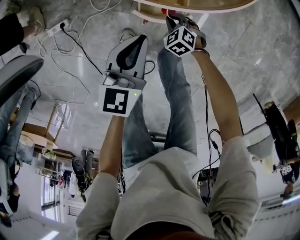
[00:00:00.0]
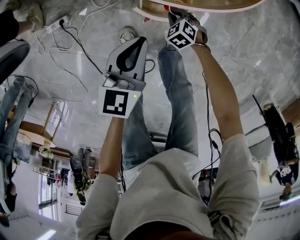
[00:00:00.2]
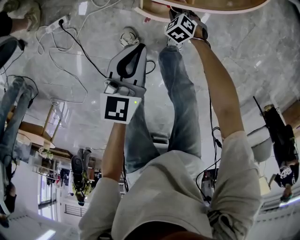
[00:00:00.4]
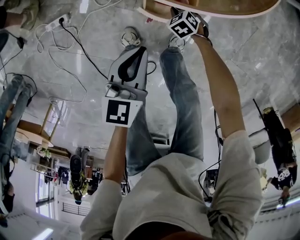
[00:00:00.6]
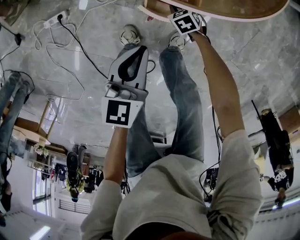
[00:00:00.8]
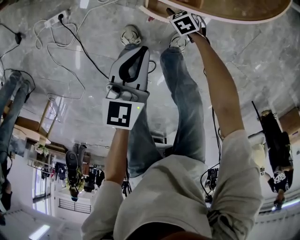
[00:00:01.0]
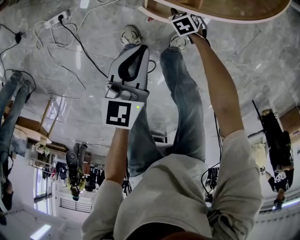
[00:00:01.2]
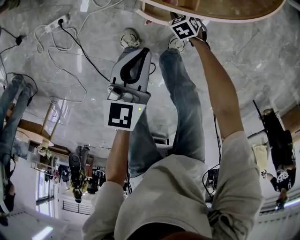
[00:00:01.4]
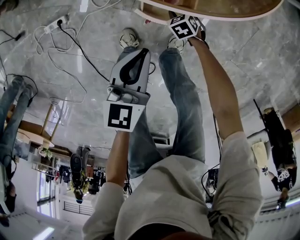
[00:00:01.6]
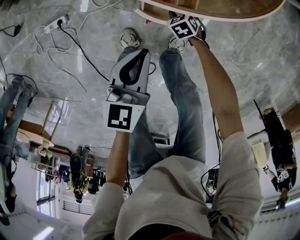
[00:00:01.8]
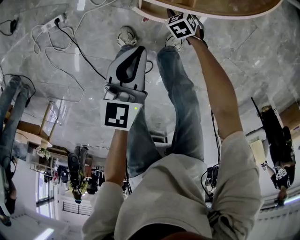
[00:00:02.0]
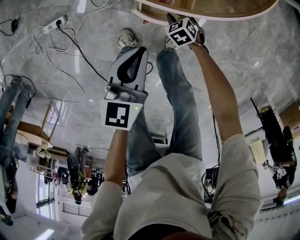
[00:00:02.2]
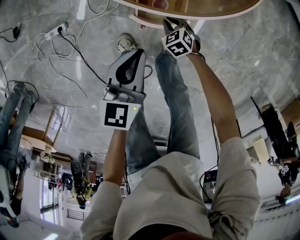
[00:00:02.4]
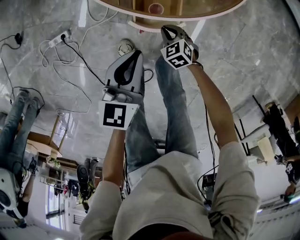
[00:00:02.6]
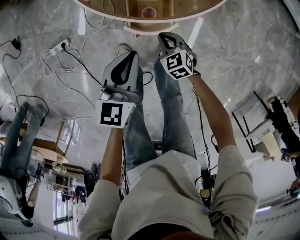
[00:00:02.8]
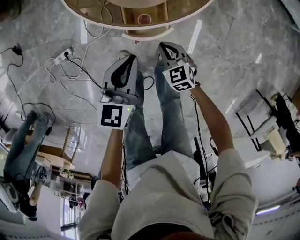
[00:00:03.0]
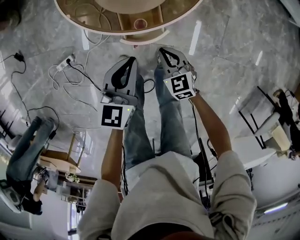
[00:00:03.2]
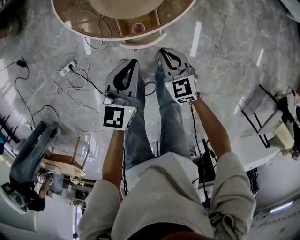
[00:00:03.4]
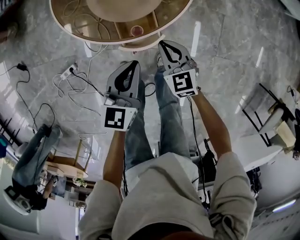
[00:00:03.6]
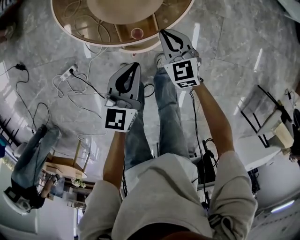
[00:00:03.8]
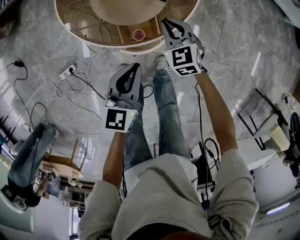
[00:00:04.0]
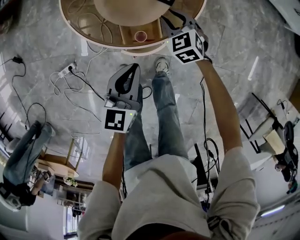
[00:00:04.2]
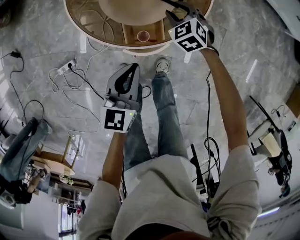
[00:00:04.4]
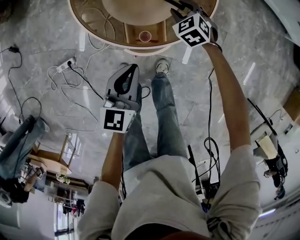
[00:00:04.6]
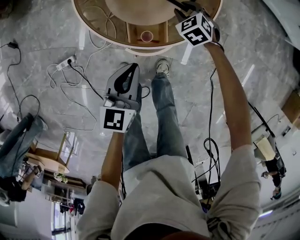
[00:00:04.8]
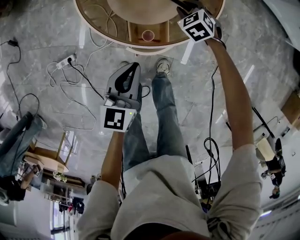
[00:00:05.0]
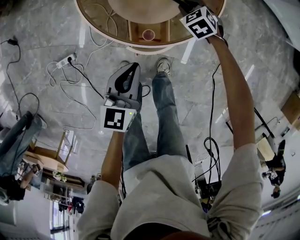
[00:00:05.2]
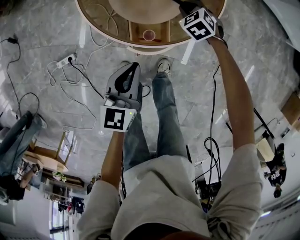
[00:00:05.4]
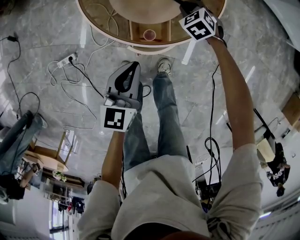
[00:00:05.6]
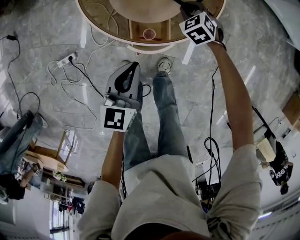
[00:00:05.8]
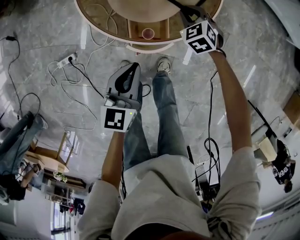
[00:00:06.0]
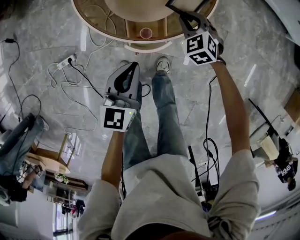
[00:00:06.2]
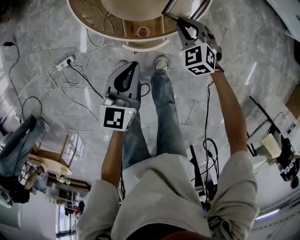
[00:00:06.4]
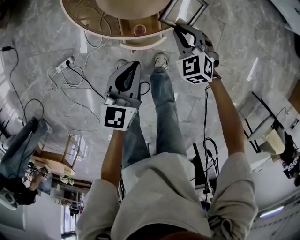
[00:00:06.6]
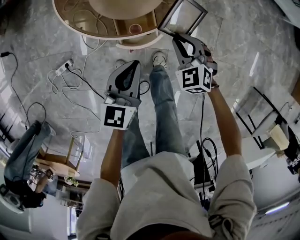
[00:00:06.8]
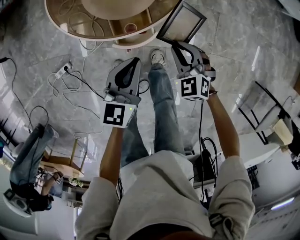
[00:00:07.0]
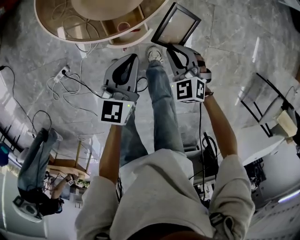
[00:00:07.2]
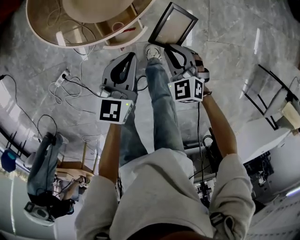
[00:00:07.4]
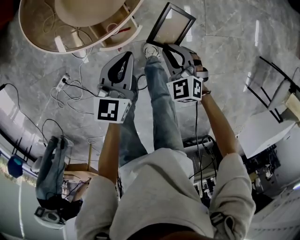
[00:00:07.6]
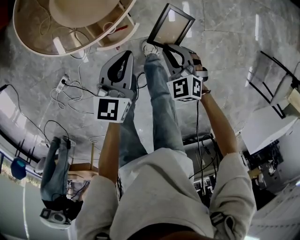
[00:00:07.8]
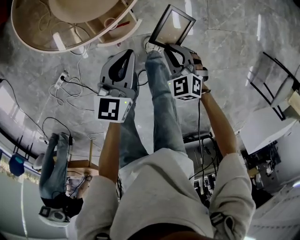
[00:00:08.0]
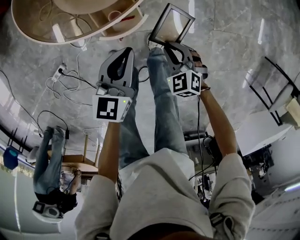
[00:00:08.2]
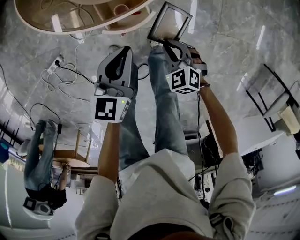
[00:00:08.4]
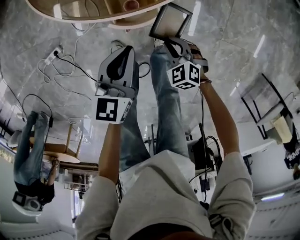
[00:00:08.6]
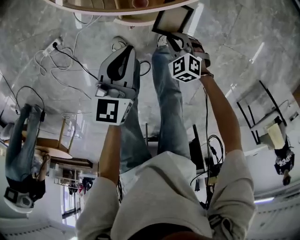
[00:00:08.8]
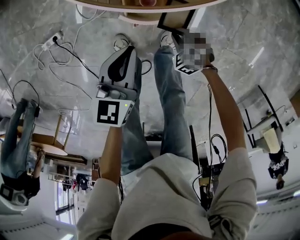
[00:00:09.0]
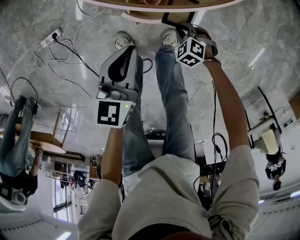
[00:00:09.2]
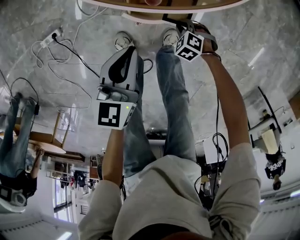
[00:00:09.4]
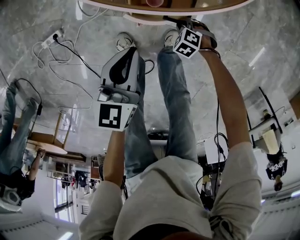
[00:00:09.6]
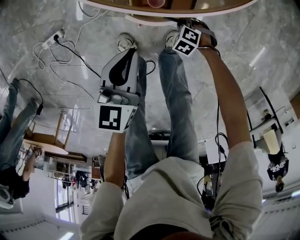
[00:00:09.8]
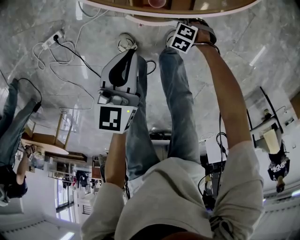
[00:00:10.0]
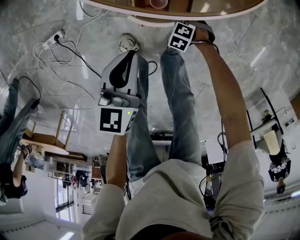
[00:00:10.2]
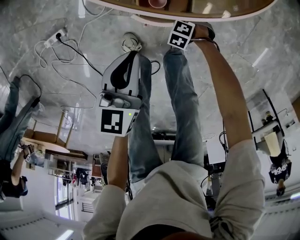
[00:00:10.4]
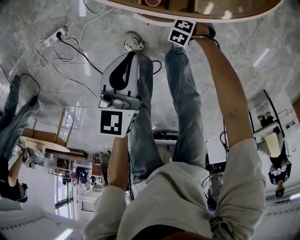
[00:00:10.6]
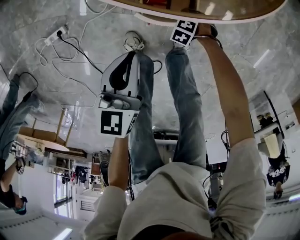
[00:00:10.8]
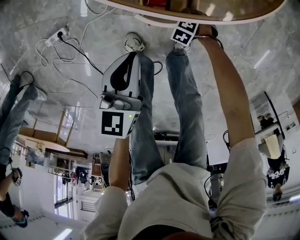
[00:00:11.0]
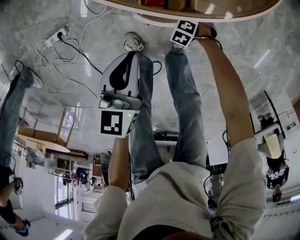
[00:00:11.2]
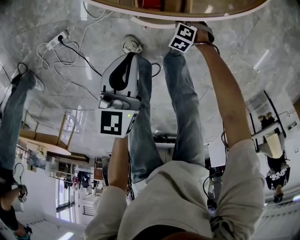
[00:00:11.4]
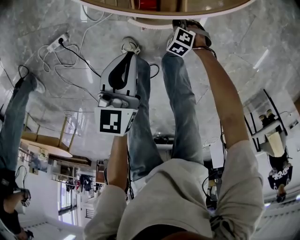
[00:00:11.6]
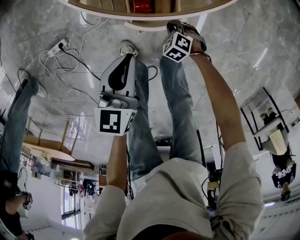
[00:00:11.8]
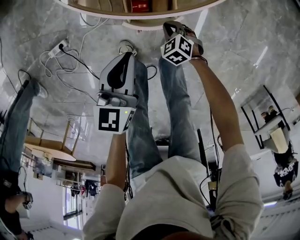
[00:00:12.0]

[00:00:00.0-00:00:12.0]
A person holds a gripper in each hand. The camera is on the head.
00:00:00.0 to 00:00:01.6: The left gripper changes place by about 5 cm. Meanwhile the right gripper travels downward by some 10 cm.
00:00:01.6 to 00:00:03.0: The left gripper is displaced upward by roughly 10 cm; the right gripper travels upward by about 25 cm, turns by approximately 30 degrees, and closes.
00:00:03.0 to 00:00:04.4: The right gripper goes roughly 25 cm forward, turns by some 20 degrees, and opens its fingers. The left gripper travels forward by roughly 5 cm.
00:00:04.4 to 00:00:06.0: The right gripper closes up.
00:00:06.0 to 00:00:07.6: The right gripper is displaced backward and to the right by roughly 30 cm. The left gripper travels to the right by about 15 cm, and changes its angle by about 20 degrees.
00:00:07.6 to 00:00:09.0: The left gripper moves roughly 20 cm, and changes its angle by some 20 degrees; the right gripper shifts approximately 25 cm downward, and rotates some 40 degrees.
00:00:09.0 to 00:00:10.4: The left gripper ends up about 5 cm from where it was; the right gripper heads downward, covering roughly 10 cm, and changes its angle by about 30 degrees.
00:00:10.4 to 00:00:12.0: The left gripper shifts roughly 5 cm upward; the right gripper heads upward, covering roughly 10 cm, and turns by about 40 degrees.

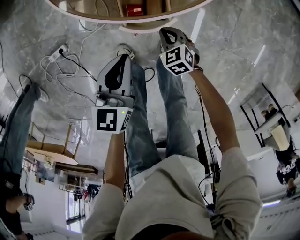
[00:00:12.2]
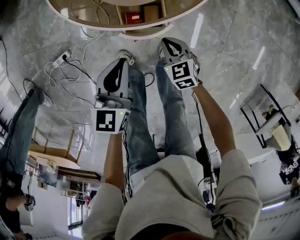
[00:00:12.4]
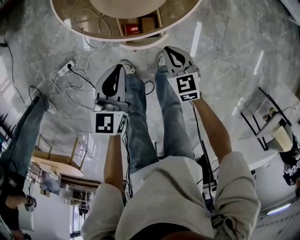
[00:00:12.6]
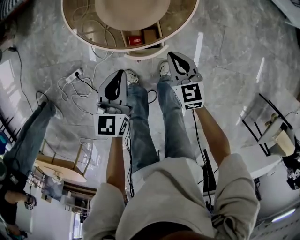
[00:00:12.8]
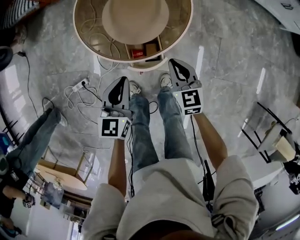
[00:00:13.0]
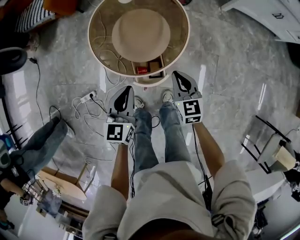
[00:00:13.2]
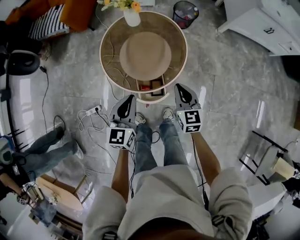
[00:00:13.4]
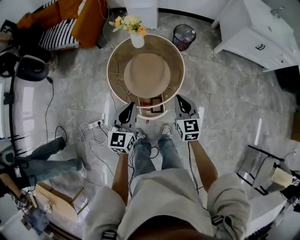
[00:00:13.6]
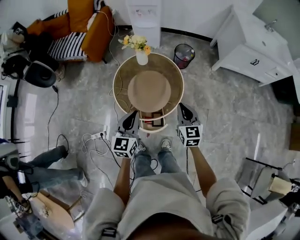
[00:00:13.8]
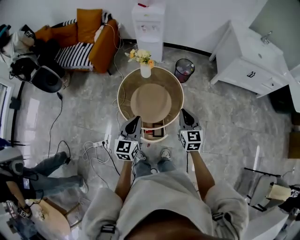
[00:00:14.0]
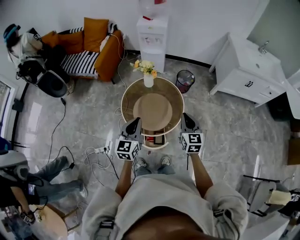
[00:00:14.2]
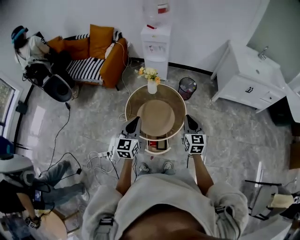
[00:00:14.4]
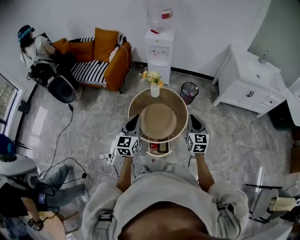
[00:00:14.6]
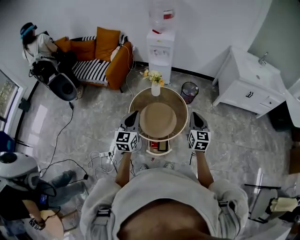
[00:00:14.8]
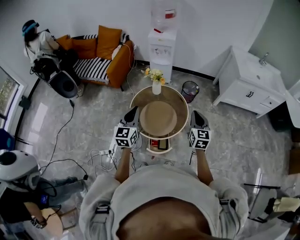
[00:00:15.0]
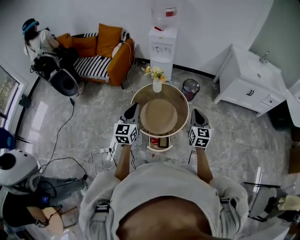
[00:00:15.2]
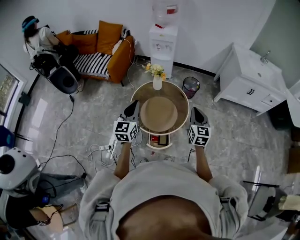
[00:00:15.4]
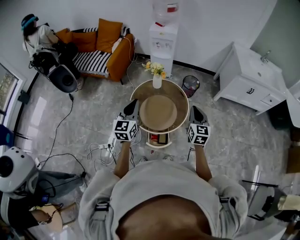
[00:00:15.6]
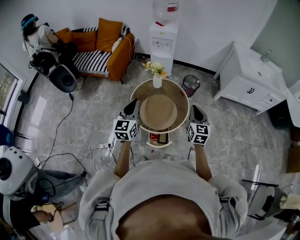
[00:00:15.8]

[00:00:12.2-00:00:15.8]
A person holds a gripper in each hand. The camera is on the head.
00:00:12.2 to 00:00:14.0: The grippers both shift upward by approximately 50 cm. The right gripper tilts its fingers approximately 40 degrees upward, while the left gripper turns by some 20 degrees.
00:00:14.0 to 00:00:15.8: The right gripper goes approximately 10 cm upward. Meanwhile the left gripper heads upward and to the left, covering approximately 15 cm.

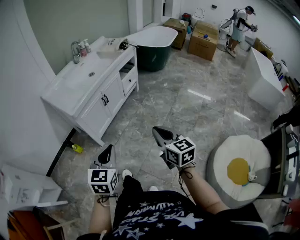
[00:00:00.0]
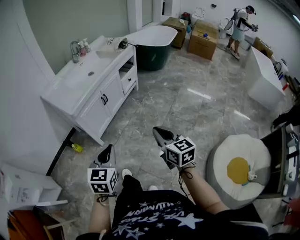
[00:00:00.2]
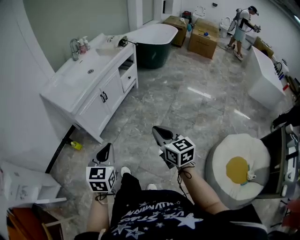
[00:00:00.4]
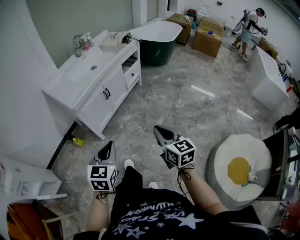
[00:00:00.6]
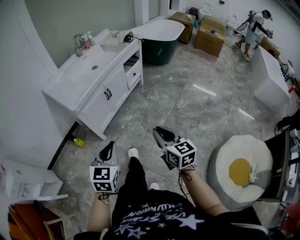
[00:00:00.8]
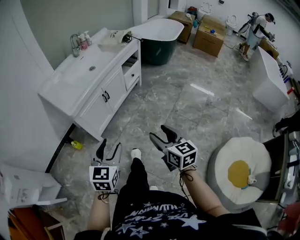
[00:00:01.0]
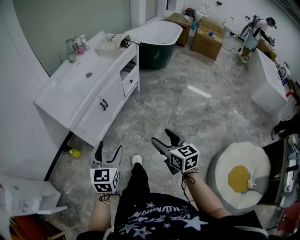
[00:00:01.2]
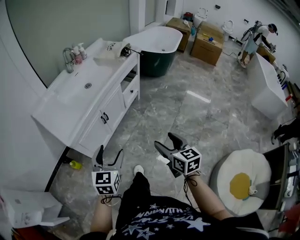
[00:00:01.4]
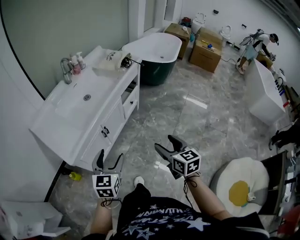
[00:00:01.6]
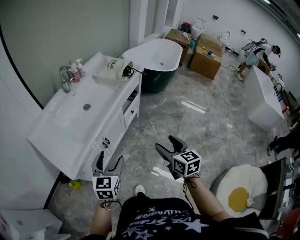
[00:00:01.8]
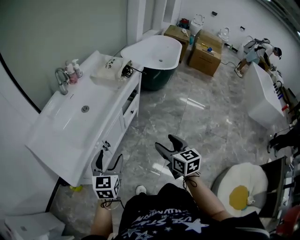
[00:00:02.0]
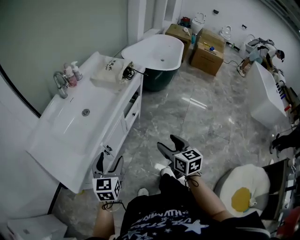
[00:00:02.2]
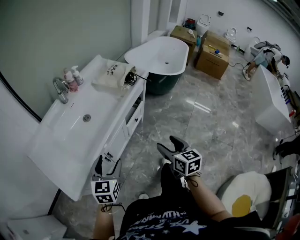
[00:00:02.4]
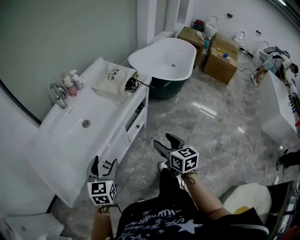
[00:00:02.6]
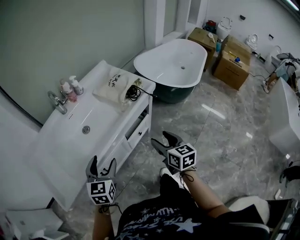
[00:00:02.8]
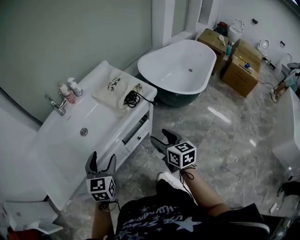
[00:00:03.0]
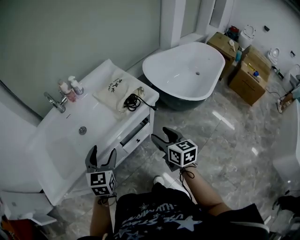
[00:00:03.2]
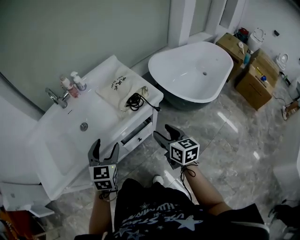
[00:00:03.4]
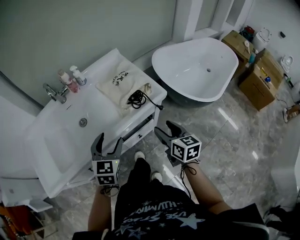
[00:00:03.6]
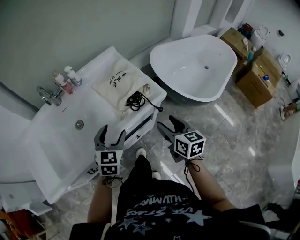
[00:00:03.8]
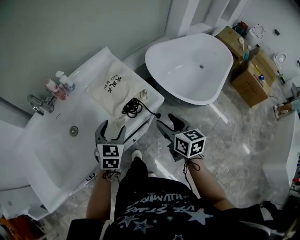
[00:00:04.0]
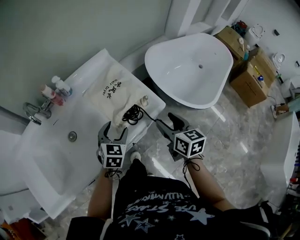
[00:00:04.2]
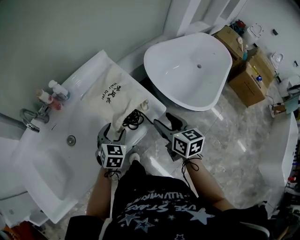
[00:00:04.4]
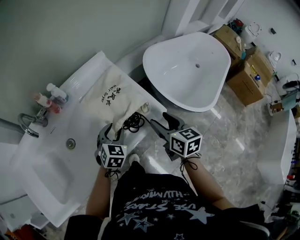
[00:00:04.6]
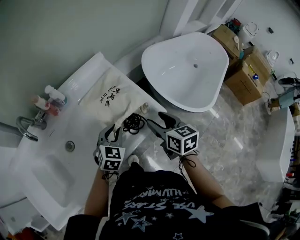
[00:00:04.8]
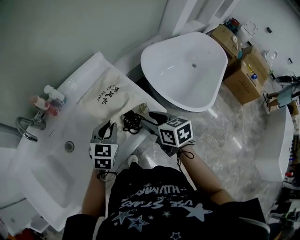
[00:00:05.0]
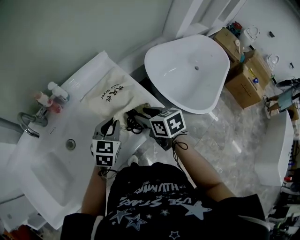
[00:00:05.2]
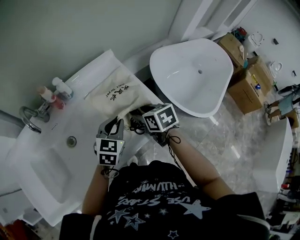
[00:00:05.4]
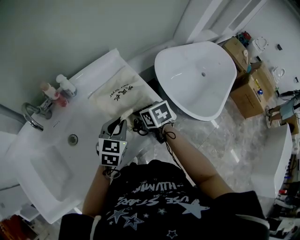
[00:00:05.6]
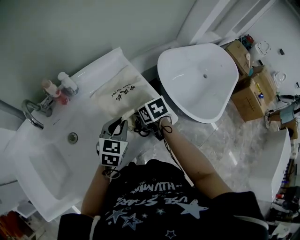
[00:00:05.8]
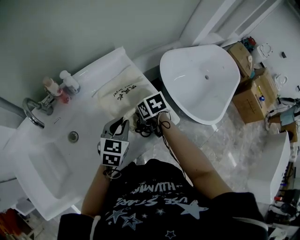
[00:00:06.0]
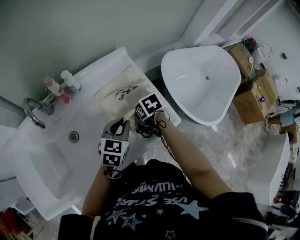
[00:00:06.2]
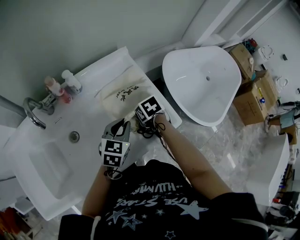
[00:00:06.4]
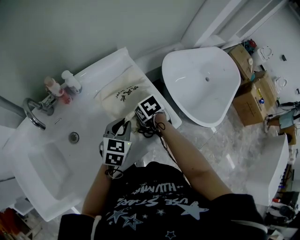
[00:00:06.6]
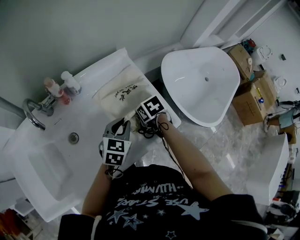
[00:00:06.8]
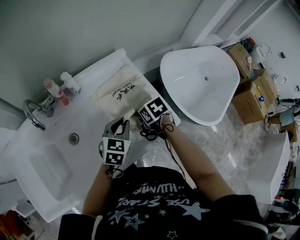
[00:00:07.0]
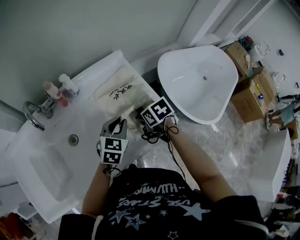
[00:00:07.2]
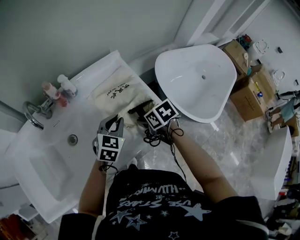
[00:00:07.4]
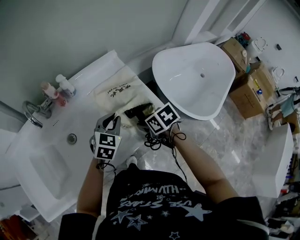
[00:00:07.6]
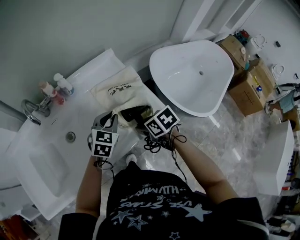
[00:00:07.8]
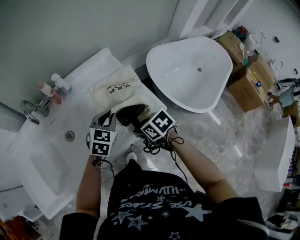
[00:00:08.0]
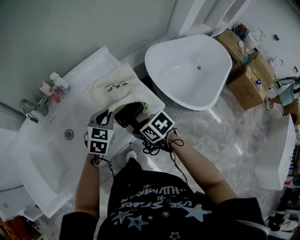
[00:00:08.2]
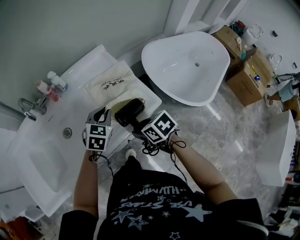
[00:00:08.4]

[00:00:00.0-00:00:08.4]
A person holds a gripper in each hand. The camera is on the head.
00:00:00.0 to 00:00:01.4: The grippers both shift forward by roughly 20 cm. The right gripper opens. Meanwhile the left gripper opens up.
00:00:01.4 to 00:00:02.8: Both grippers travel together forward, some 40 cm.
00:00:02.8 to 00:00:04.2: Both grippers move forward and to the right, approximately 30 cm.
00:00:04.2 to 00:00:05.6: The right gripper shifts approximately 20 cm to the left, forward and downward, and changes its angle by about 30 degrees, while the left gripper is displaced forward by approximately 5 cm, and closes its fingers.
00:00:07.0 to 00:00:08.4: The right gripper goes approximately 15 cm backward.
